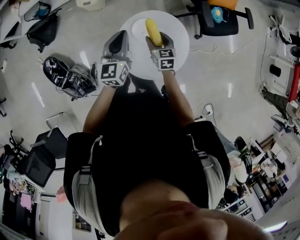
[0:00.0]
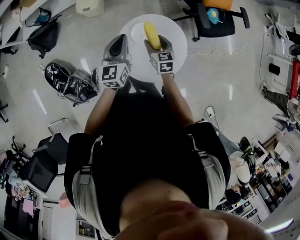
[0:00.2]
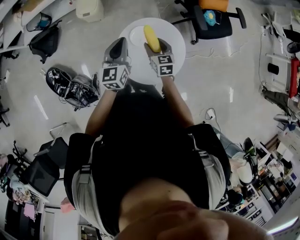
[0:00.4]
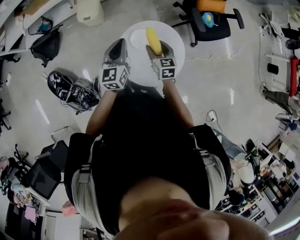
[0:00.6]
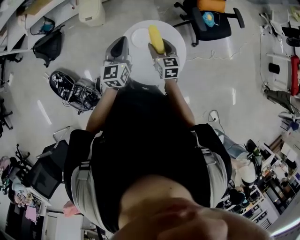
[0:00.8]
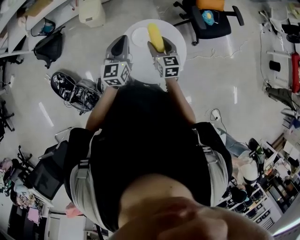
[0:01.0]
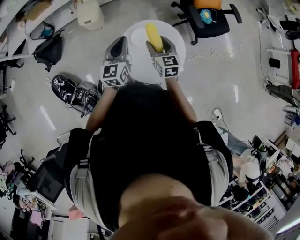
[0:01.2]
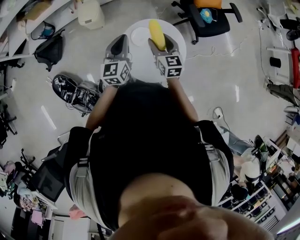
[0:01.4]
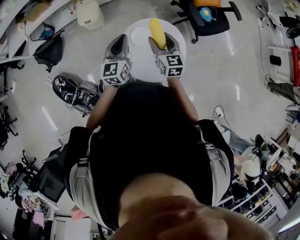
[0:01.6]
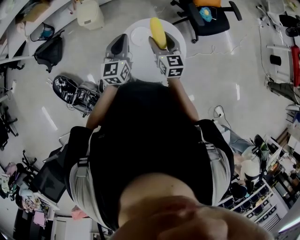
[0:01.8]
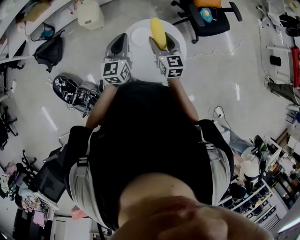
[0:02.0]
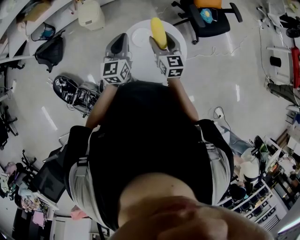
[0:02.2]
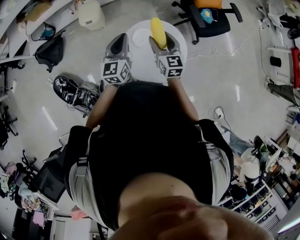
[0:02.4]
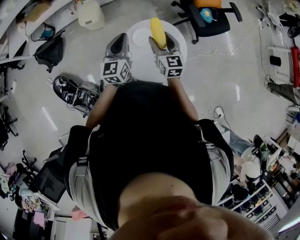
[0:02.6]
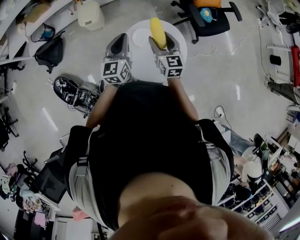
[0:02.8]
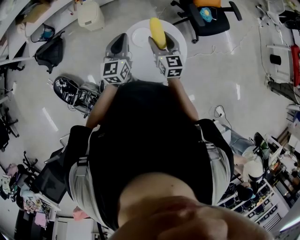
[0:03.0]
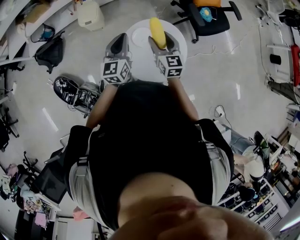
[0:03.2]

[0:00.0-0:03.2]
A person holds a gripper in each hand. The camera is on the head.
0:00.0 to 0:01.6: The right gripper is displaced upward by roughly 15 cm, and turns by roughly 20 degrees.
0:01.6 to 0:03.2: Both grippers stay put.

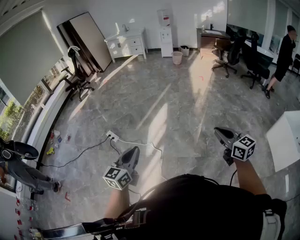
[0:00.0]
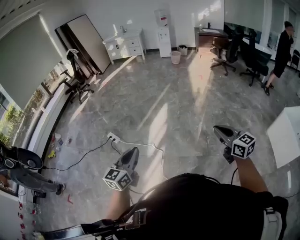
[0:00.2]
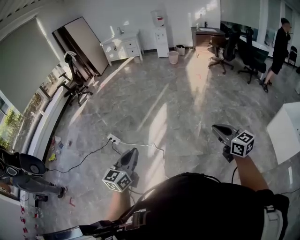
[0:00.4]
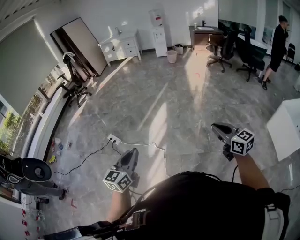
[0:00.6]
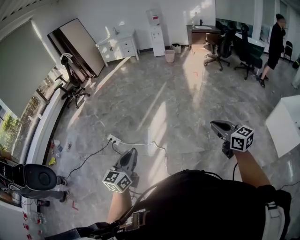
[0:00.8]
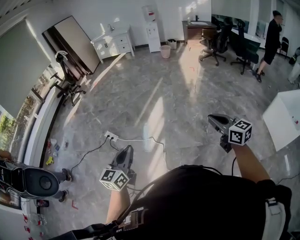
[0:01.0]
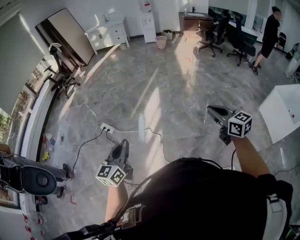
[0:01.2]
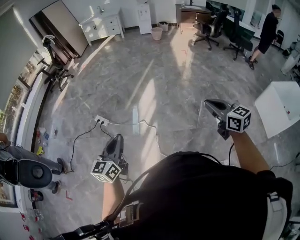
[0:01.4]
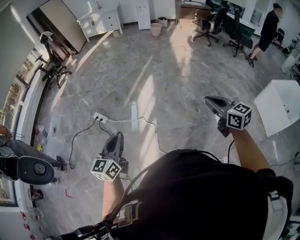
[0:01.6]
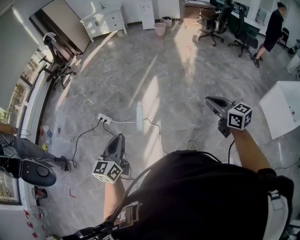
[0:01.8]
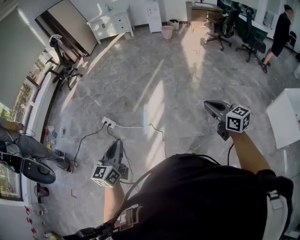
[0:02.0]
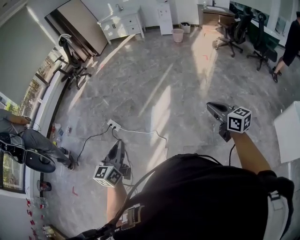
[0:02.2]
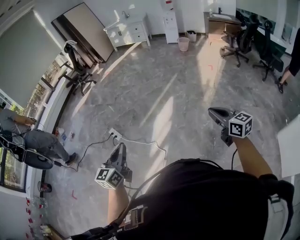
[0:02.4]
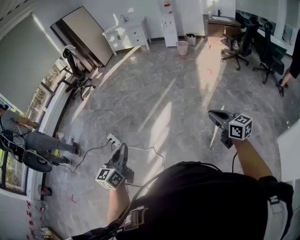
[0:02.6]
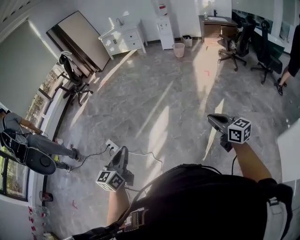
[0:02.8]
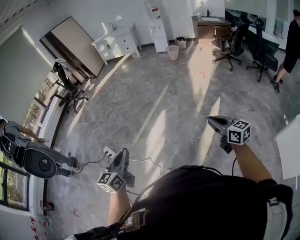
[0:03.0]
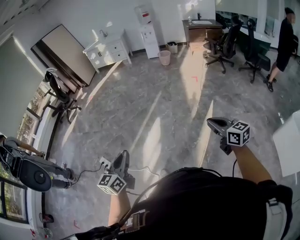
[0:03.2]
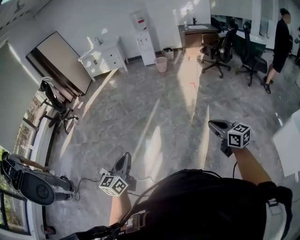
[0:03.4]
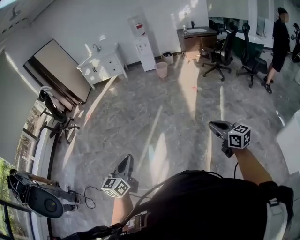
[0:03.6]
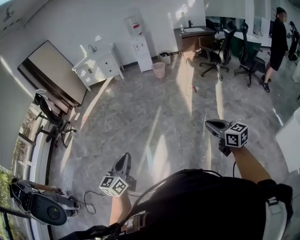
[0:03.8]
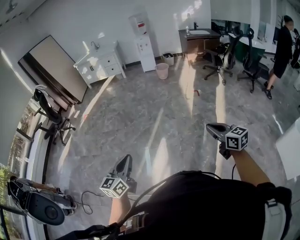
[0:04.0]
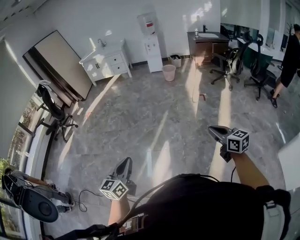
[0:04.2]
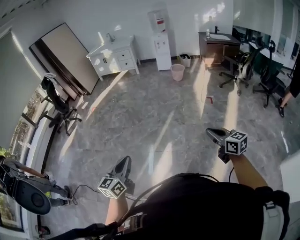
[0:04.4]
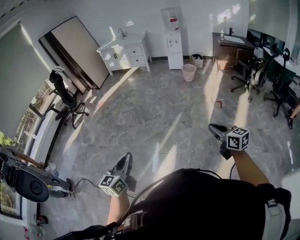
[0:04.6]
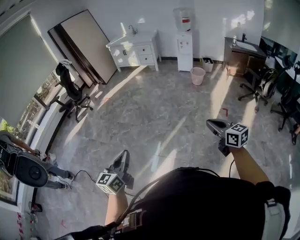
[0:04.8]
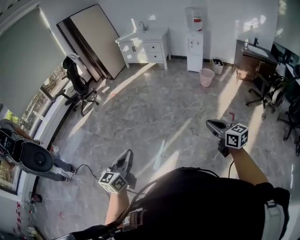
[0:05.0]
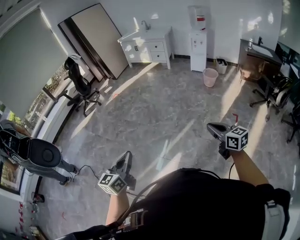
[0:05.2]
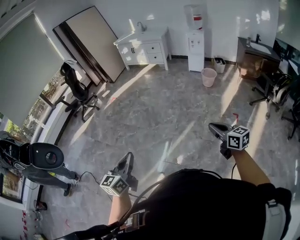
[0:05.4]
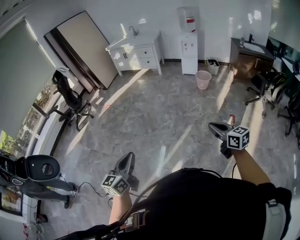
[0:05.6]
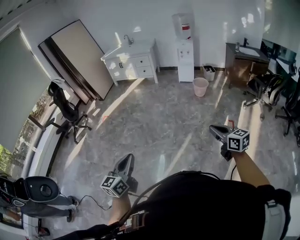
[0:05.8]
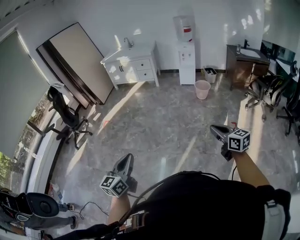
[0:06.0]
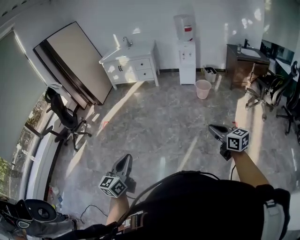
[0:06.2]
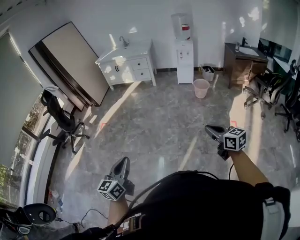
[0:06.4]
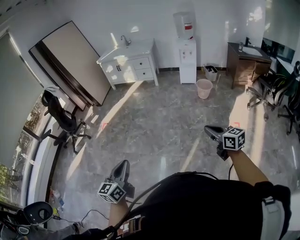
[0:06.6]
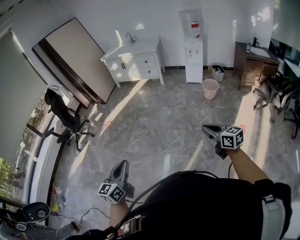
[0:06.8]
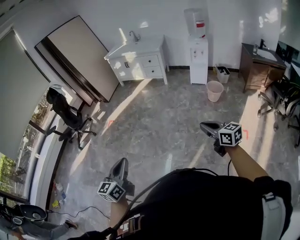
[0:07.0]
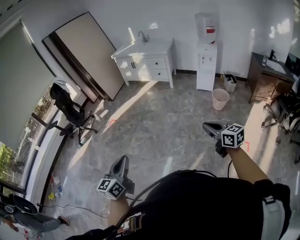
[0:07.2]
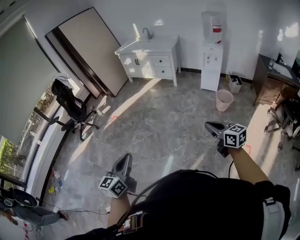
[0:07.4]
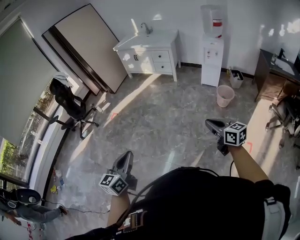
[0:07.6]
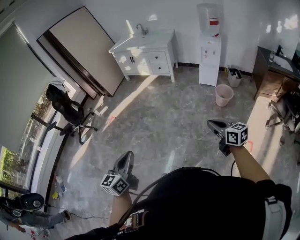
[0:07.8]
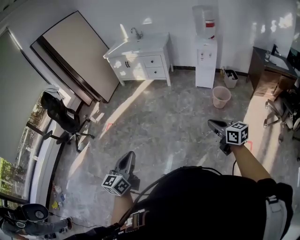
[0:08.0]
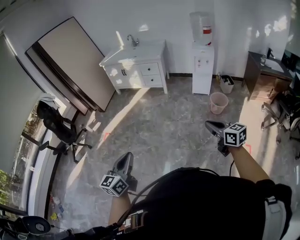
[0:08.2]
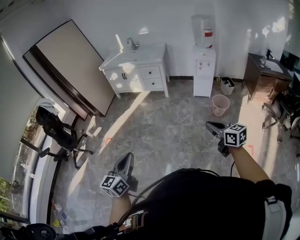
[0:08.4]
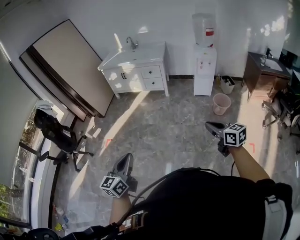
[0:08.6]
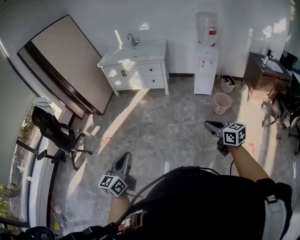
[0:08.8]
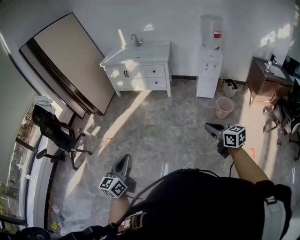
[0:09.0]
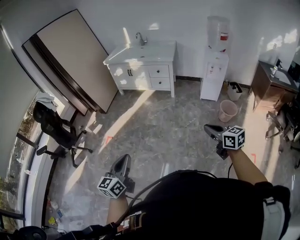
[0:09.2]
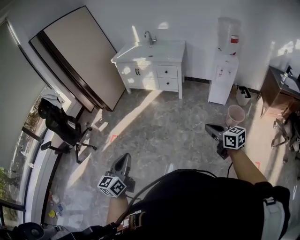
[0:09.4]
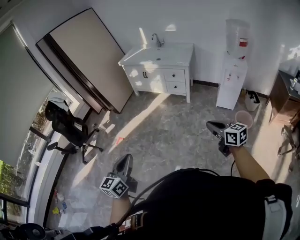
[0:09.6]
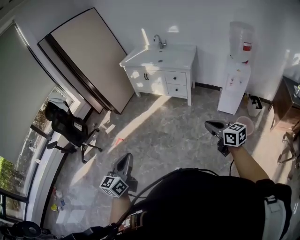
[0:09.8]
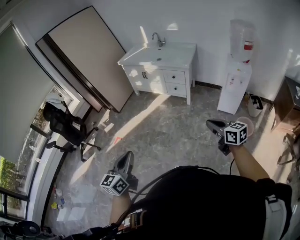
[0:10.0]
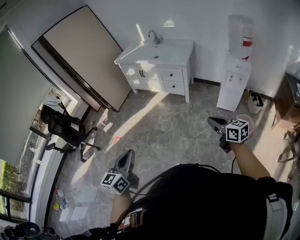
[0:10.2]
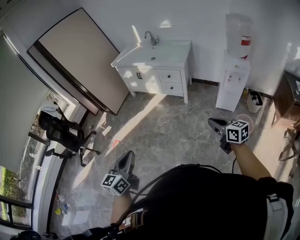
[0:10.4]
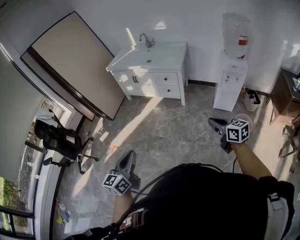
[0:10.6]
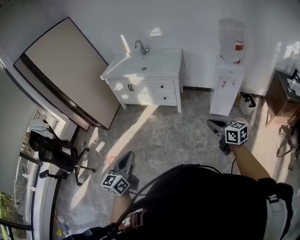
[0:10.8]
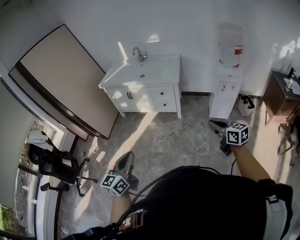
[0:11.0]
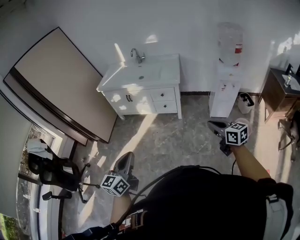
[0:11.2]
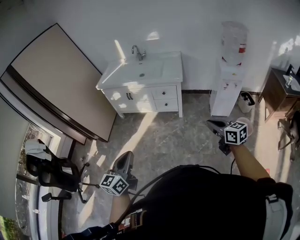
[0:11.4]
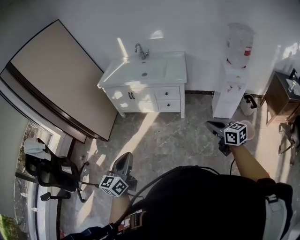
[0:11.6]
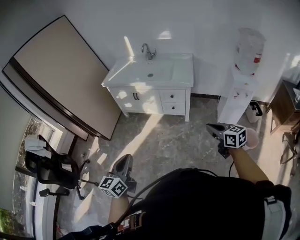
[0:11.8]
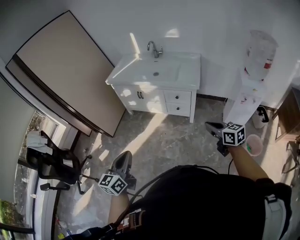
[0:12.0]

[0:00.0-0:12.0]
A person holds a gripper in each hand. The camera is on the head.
0:00.0 to 0:01.6: The two grippers go about 15 cm to the left.
0:01.6 to 0:03.0: Both grippers are carried forward and to the right, roughly 40 cm.
0:03.0 to 0:04.4: The two grippers travel together, forward, approximately 40 cm.
0:04.4 to 0:06.0: The pair of grippers is taken forward, roughly 50 cm.
0:06.0 to 0:07.6: Both grippers travel together forward, about 35 cm.
0:07.6 to 0:09.0: The grippers both shift forward and to the left by about 35 cm.
0:09.0 to 0:10.4: The two grippers go roughly 35 cm forward and to the right.
0:10.4 to 0:12.0: Both grippers move forward, some 35 cm.

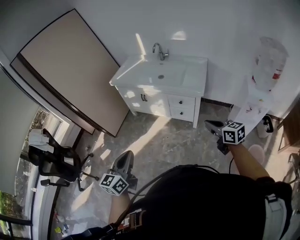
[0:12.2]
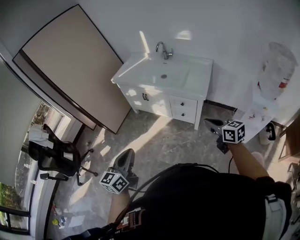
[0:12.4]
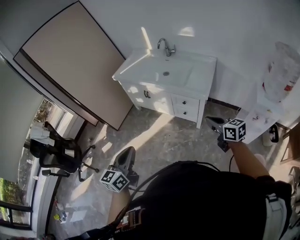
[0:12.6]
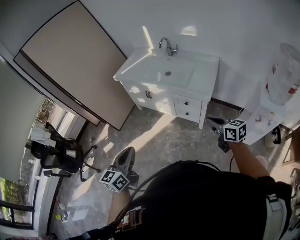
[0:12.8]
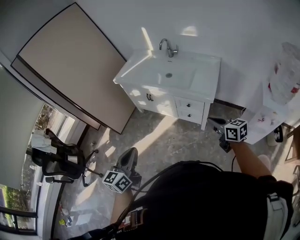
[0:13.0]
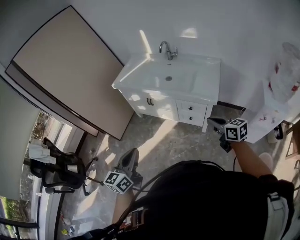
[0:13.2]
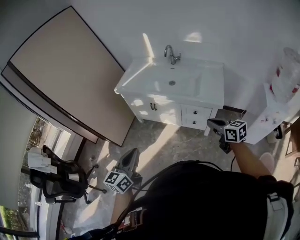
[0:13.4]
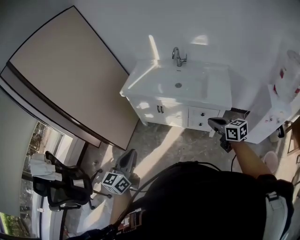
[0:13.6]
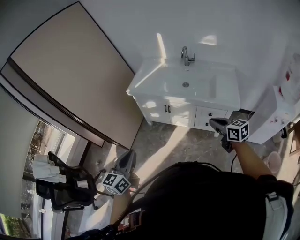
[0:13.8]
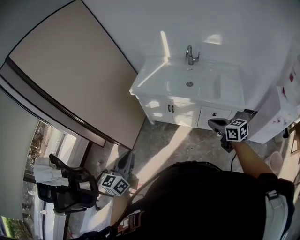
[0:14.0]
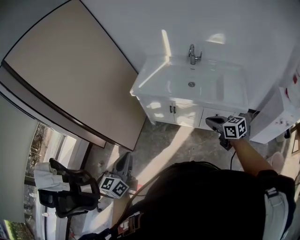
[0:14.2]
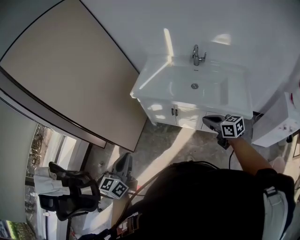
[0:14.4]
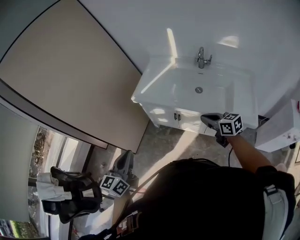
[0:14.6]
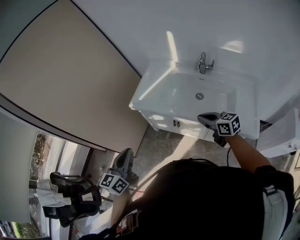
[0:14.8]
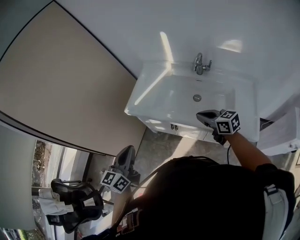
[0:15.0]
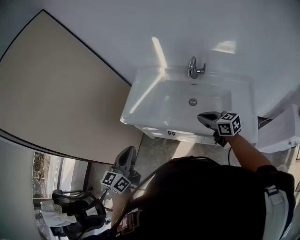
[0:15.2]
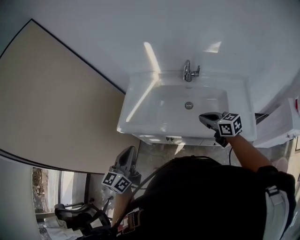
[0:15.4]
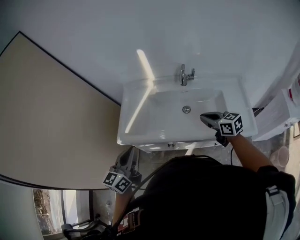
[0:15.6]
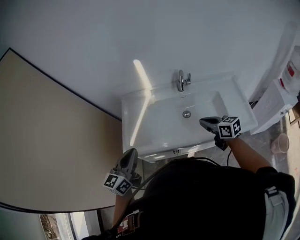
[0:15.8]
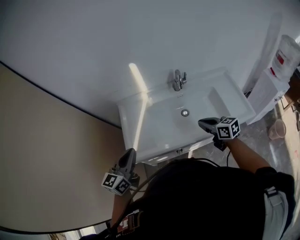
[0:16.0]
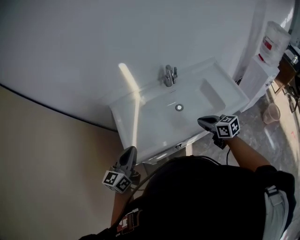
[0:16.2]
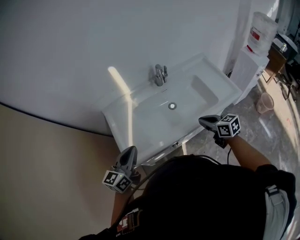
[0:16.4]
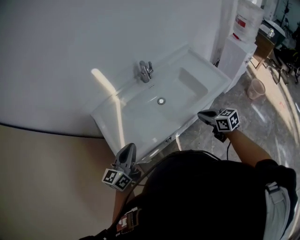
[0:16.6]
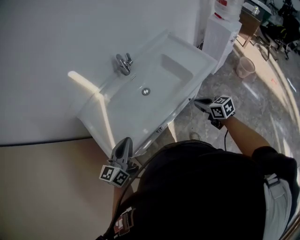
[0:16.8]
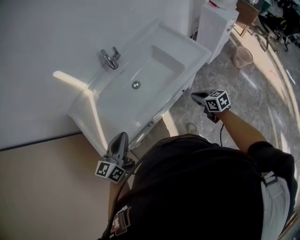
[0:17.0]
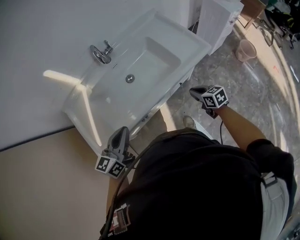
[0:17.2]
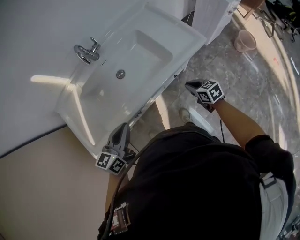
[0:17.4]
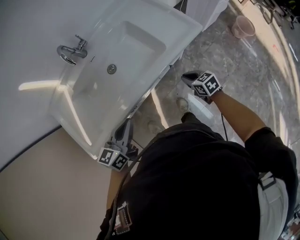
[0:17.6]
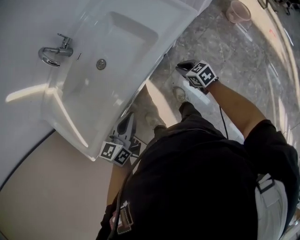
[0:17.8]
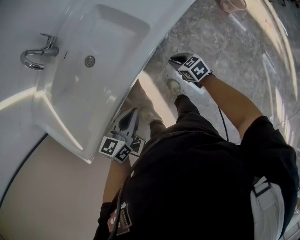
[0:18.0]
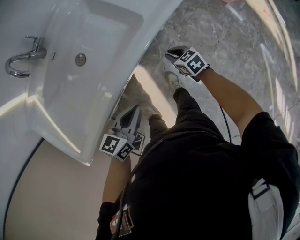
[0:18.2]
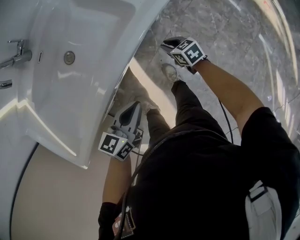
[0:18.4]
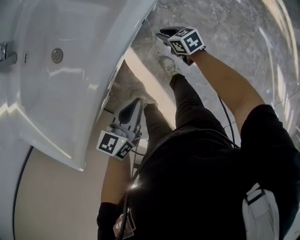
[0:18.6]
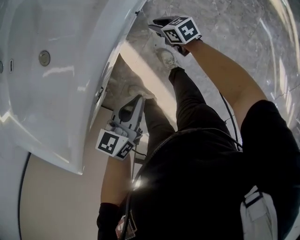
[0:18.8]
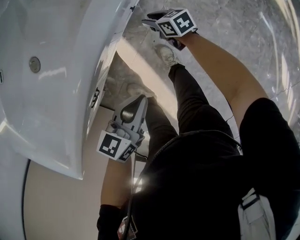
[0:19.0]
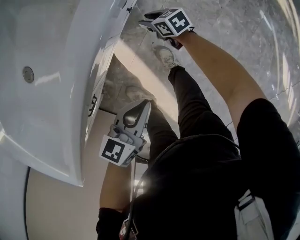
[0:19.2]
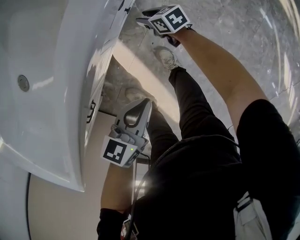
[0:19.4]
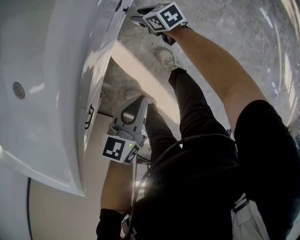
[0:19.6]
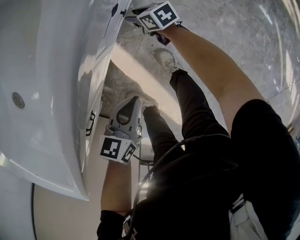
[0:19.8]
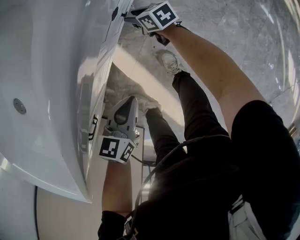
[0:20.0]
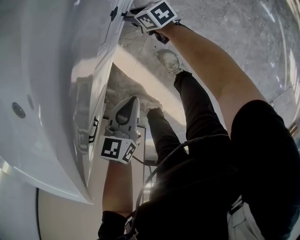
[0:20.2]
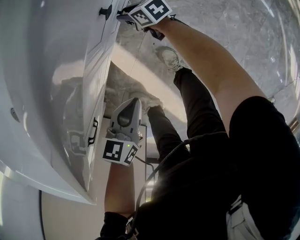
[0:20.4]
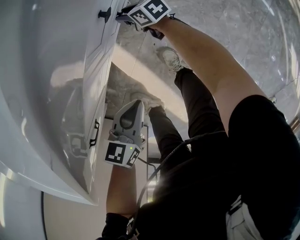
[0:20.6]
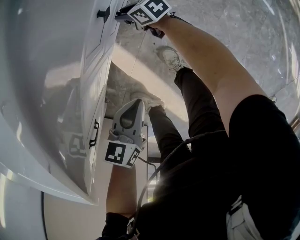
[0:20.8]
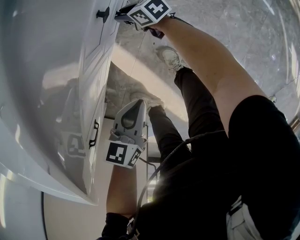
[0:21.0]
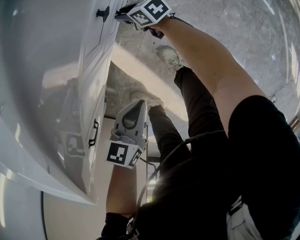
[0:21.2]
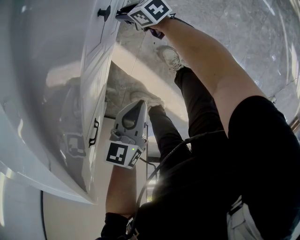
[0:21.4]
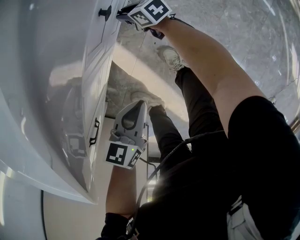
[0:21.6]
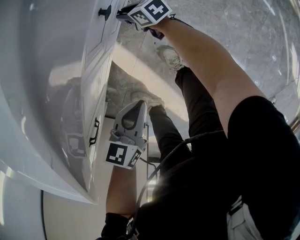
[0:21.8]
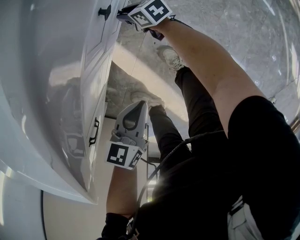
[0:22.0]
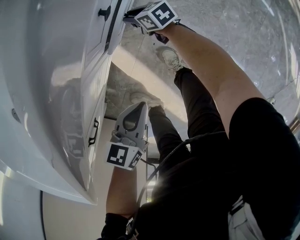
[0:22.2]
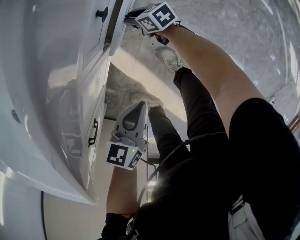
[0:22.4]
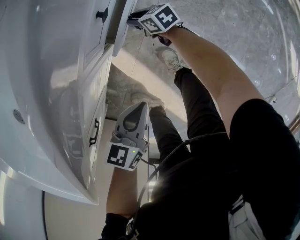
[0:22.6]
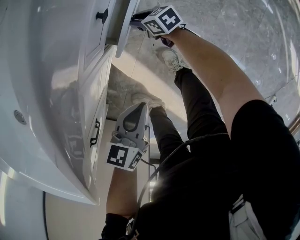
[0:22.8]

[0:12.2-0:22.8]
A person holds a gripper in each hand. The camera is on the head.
0:12.2 to 0:13.8: The grippers both shift forward and to the left by about 35 cm.
0:13.8 to 0:15.2: The grippers both shift forward by roughly 40 cm.
0:15.2 to 0:16.8: The right gripper changes place by some 15 cm, and turns by approximately 60 degrees; the left gripper shifts by roughly 20 cm, and changes its angle by roughly 50 degrees.
0:16.8 to 0:18.2: The right gripper shifts some 35 cm downward and to the right. Meanwhile the left gripper shifts approximately 40 cm to the right and downward, and turns by about 30 degrees.
0:18.2 to 0:19.8: The grippers both shift downward by about 30 cm. The right gripper changes its angle by approximately 20 degrees, and opens.
0:19.8 to 0:21.2: The grippers stay close to where they were, moving slightly.
0:21.2 to 0:22.8: The right gripper shifts by some 5 cm.
